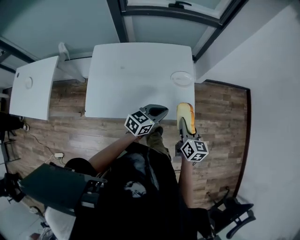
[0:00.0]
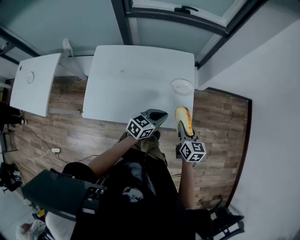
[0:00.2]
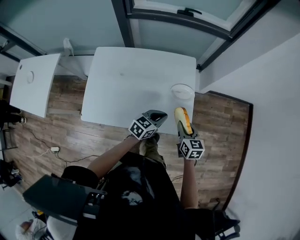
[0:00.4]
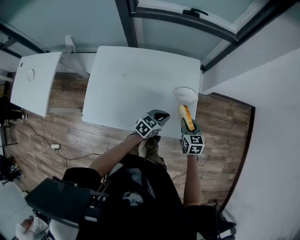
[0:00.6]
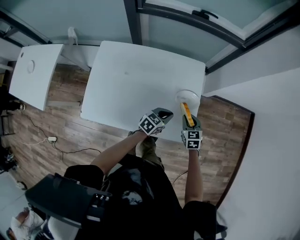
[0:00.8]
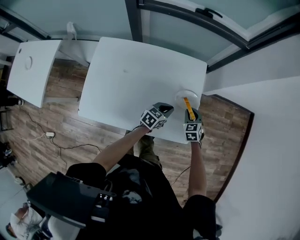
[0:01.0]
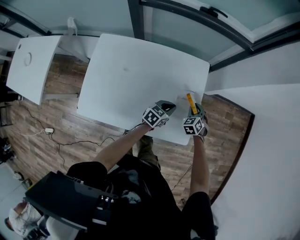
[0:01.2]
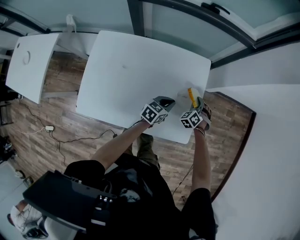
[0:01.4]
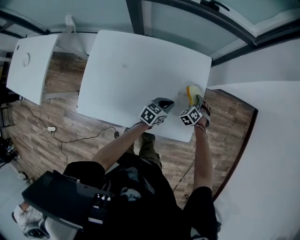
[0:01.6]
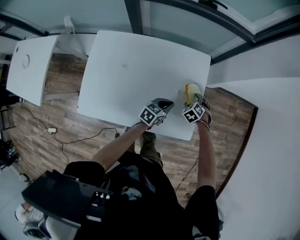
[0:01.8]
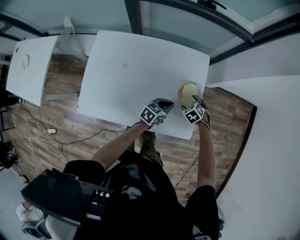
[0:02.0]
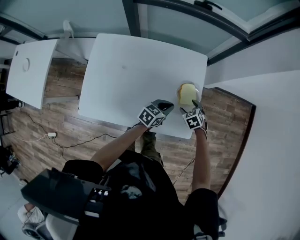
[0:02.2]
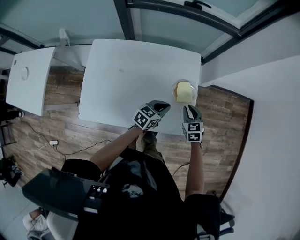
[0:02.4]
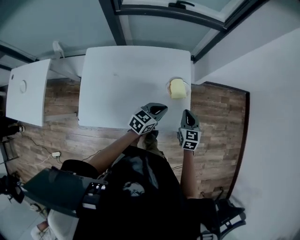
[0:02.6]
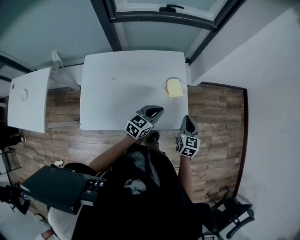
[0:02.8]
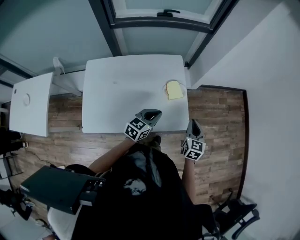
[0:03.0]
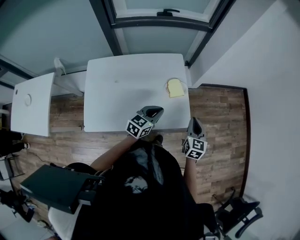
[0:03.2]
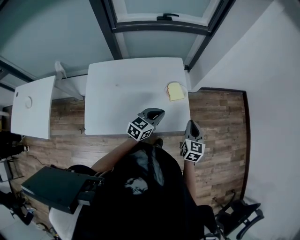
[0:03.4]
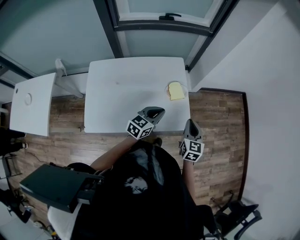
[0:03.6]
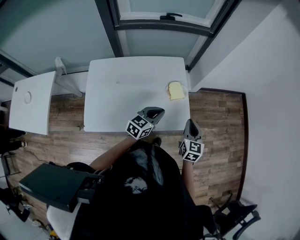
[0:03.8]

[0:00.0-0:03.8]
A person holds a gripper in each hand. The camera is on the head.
0:00.0 to 0:01.2: Both grippers move forward and downward, roughly 30 cm. The right gripper rotates around the line of its fingers by about 60 degrees, counterclockwise from behind.
0:01.2 to 0:02.6: The grippers both shift upward by roughly 10 cm. The right gripper twists some 40 degrees clockwise, seen from behind, and opens, then closes again.
0:02.6 to 0:03.8: Both grippers travel together backward and upward, about 10 cm.

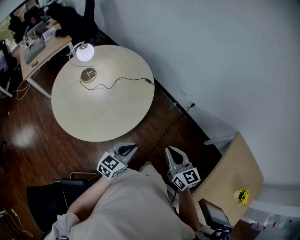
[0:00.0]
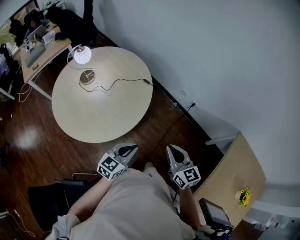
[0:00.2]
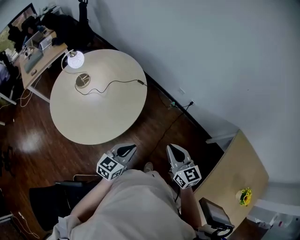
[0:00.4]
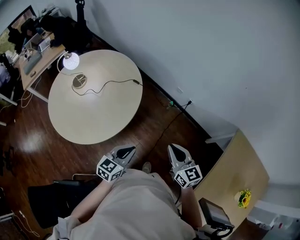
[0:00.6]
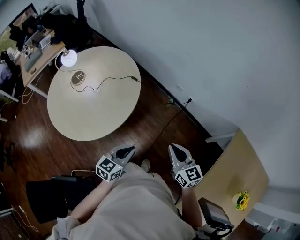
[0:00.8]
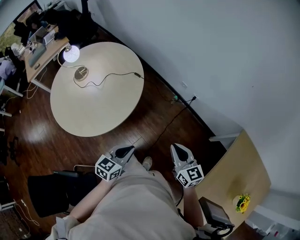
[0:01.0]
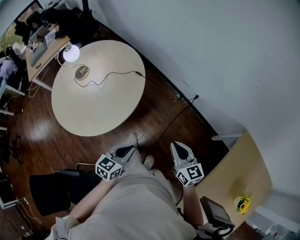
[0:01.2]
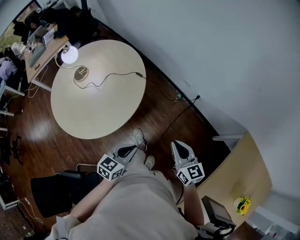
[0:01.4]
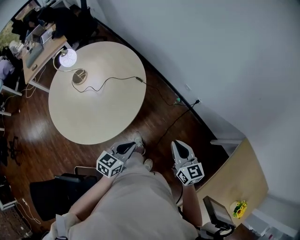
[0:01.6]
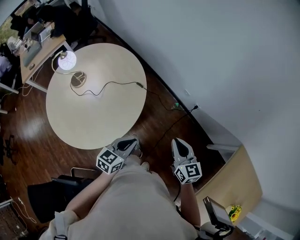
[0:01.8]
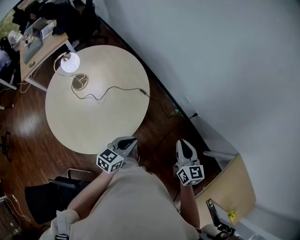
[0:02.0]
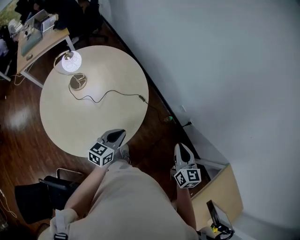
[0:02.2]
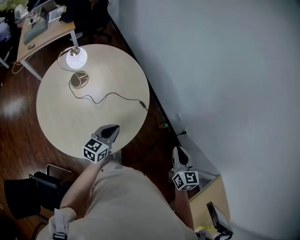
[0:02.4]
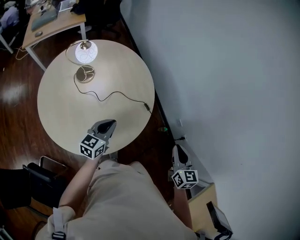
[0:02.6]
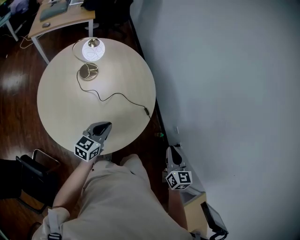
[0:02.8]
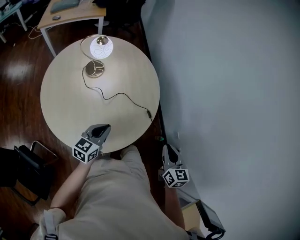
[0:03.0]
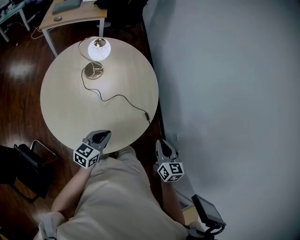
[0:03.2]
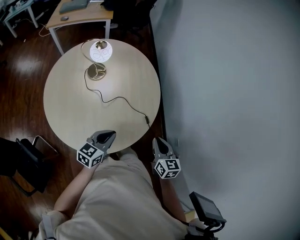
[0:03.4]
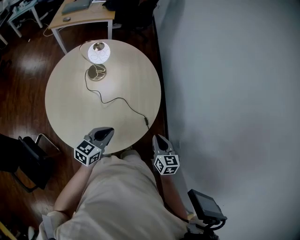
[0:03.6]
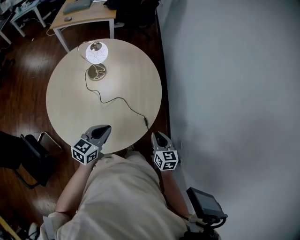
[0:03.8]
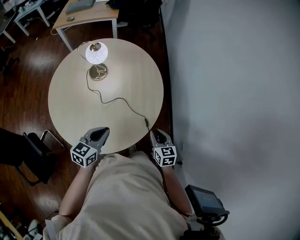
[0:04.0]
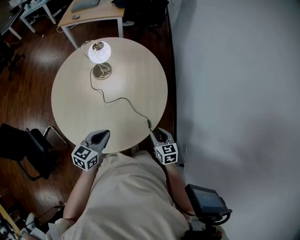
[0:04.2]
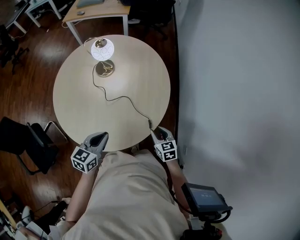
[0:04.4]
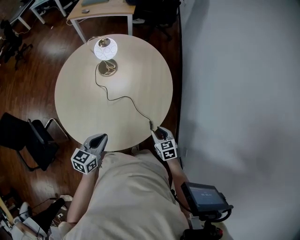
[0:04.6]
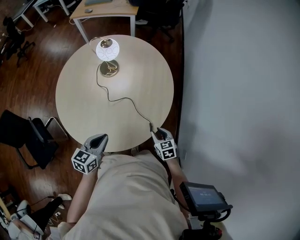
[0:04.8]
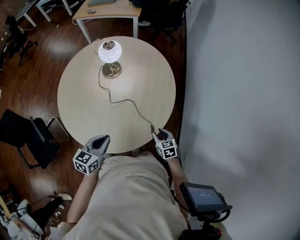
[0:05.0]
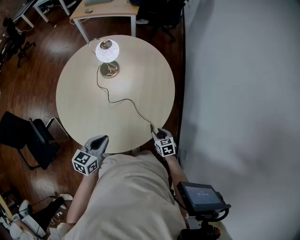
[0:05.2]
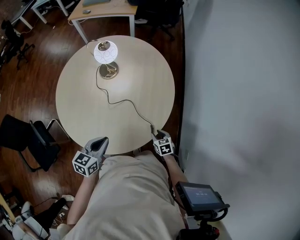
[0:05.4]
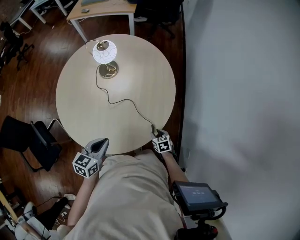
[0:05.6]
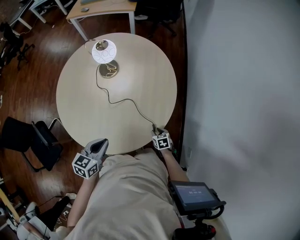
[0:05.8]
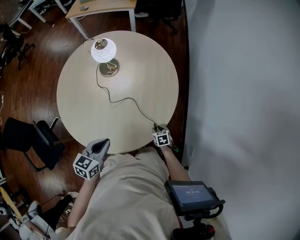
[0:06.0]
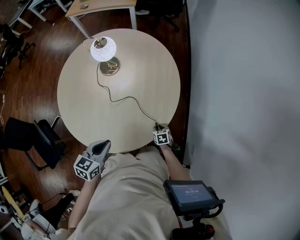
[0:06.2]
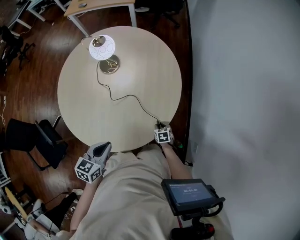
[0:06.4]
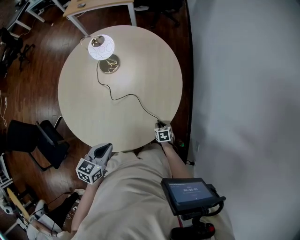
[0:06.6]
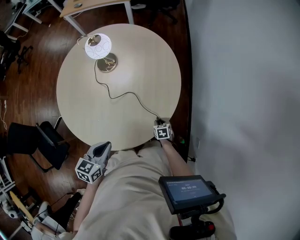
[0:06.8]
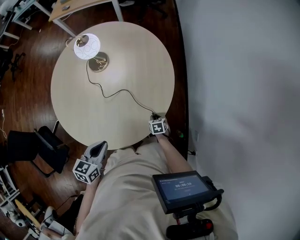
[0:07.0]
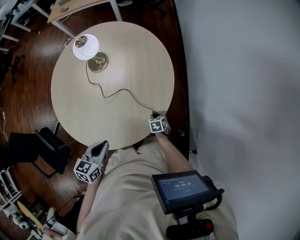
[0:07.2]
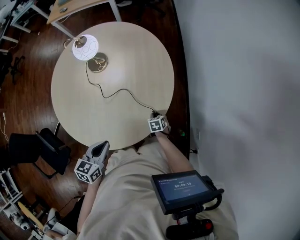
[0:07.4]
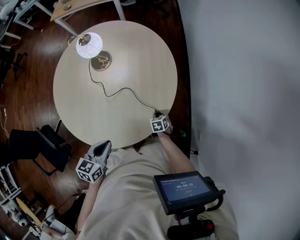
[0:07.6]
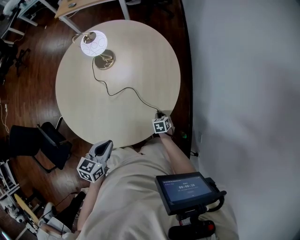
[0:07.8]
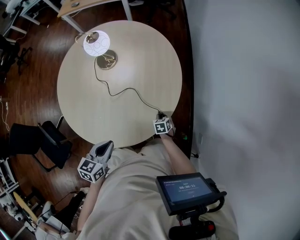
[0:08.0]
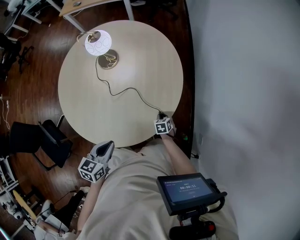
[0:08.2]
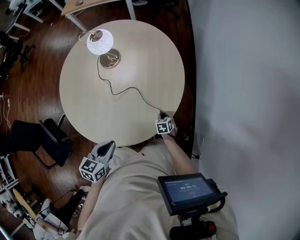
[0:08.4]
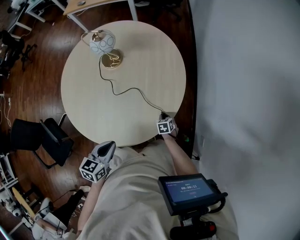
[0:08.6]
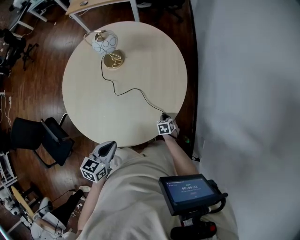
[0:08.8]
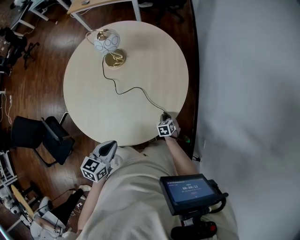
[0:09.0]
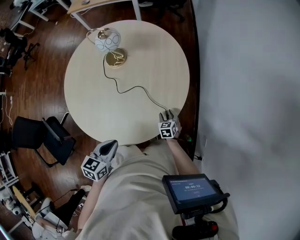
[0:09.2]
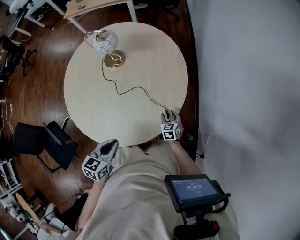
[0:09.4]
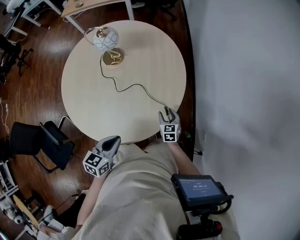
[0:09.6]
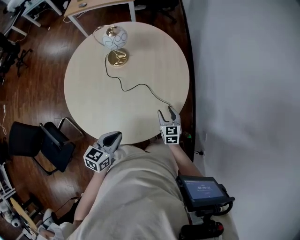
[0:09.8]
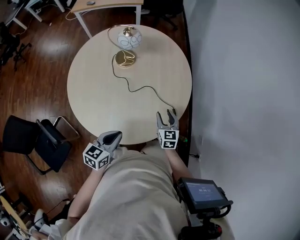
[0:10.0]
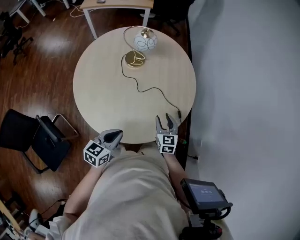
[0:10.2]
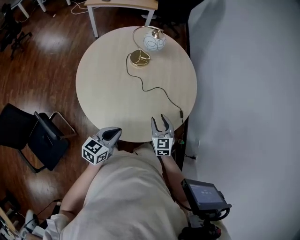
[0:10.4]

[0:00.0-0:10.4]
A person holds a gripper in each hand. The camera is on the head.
0:00.0 to 0:01.4: The right gripper is displaced to the right and forward by roughly 20 cm. Meanwhile the left gripper travels to the right by some 15 cm.
0:01.4 to 0:03.0: The left gripper shifts some 35 cm to the left and forward, and turns by roughly 30 degrees. The right gripper travels forward and to the left by about 35 cm.
0:03.0 to 0:04.4: The left gripper shifts by roughly 10 cm, and rotates roughly 20 degrees; the right gripper changes place by roughly 25 cm, swivels about 40 degrees, and opens up.
0:04.4 to 0:06.0: The right gripper travels downward by approximately 20 cm, and swivels approximately 20 degrees.
0:06.0 to 0:09.0: There are only small adjustments of the grippers.
0:09.0 to 0:10.4: The right gripper moves upward, to the left and backward, roughly 40 cm, points its fingers roughly 30 degrees further upward, and opens; the left gripper travels to the left by approximately 20 cm.

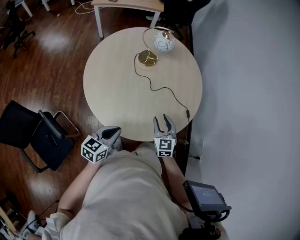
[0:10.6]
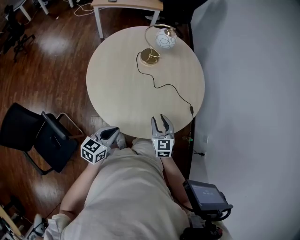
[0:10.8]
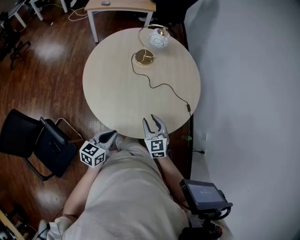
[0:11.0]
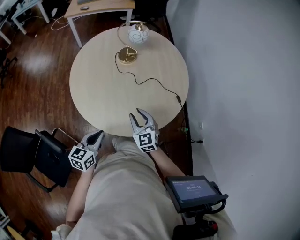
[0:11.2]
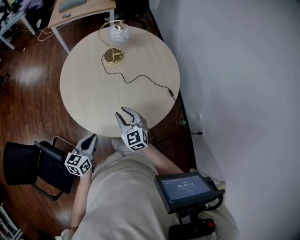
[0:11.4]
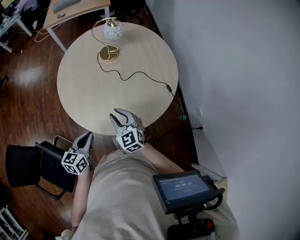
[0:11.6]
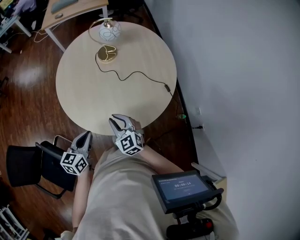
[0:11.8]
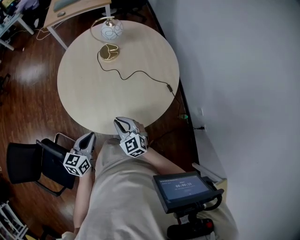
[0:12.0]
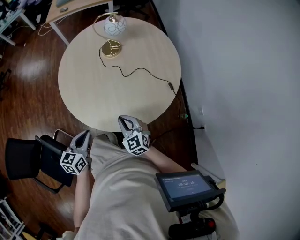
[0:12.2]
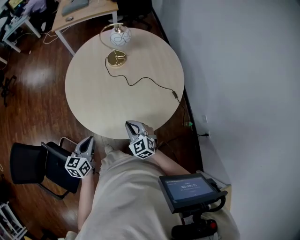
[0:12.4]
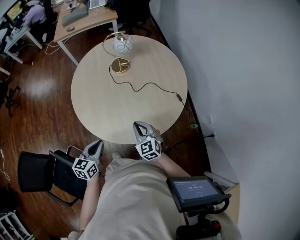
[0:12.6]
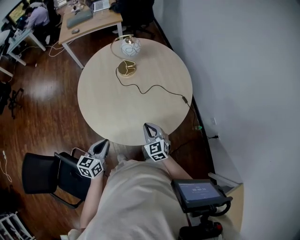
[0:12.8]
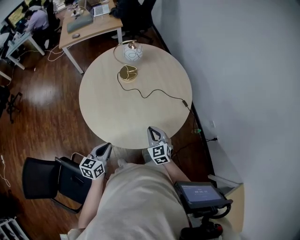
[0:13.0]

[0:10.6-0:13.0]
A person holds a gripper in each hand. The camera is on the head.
0:10.6 to 0:11.8: The right gripper moves to the left and backward, approximately 10 cm, and closes its fingers.
0:11.8 to 0:13.0: The right gripper rotates about 20 degrees. The left gripper shifts about 5 cm to the left.

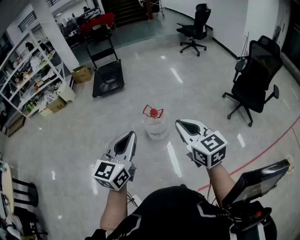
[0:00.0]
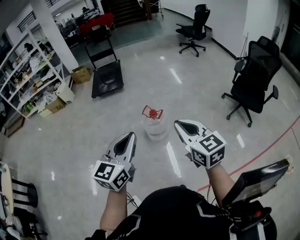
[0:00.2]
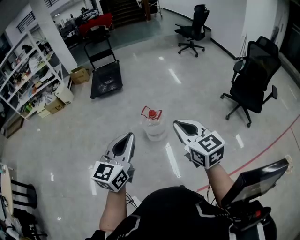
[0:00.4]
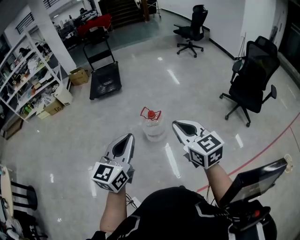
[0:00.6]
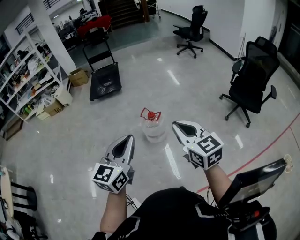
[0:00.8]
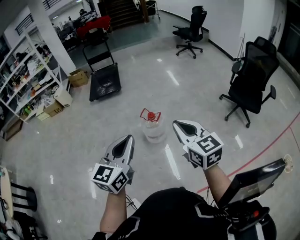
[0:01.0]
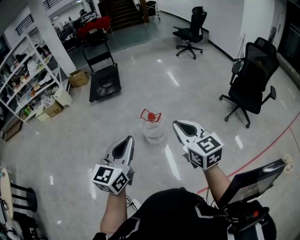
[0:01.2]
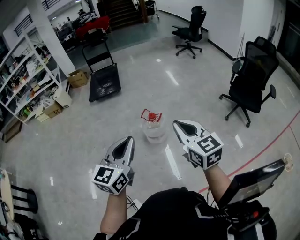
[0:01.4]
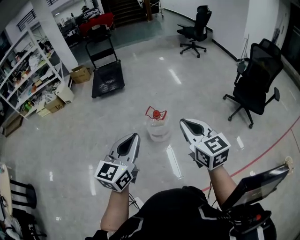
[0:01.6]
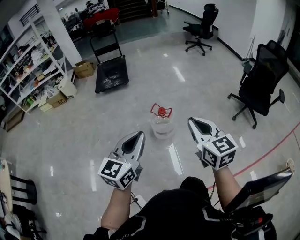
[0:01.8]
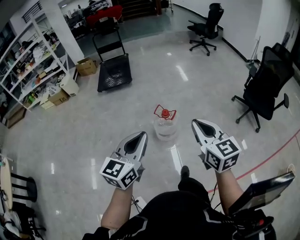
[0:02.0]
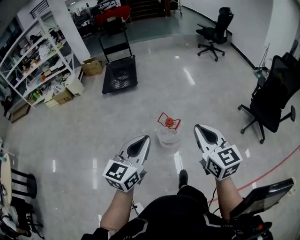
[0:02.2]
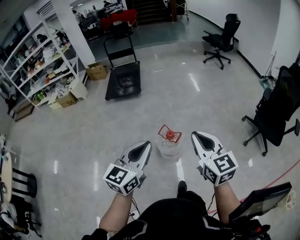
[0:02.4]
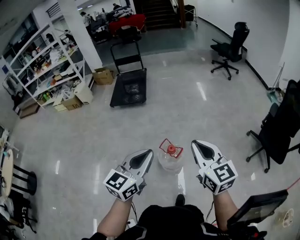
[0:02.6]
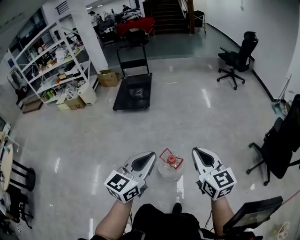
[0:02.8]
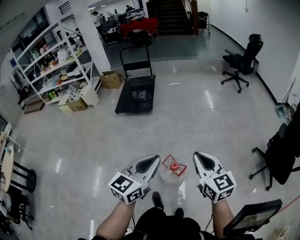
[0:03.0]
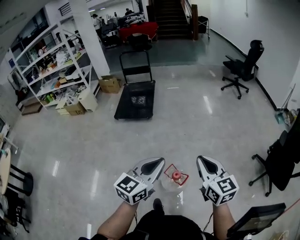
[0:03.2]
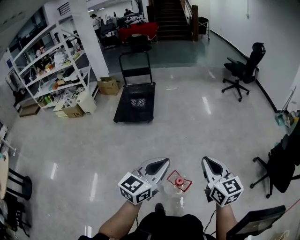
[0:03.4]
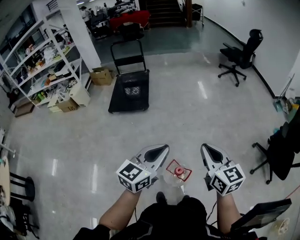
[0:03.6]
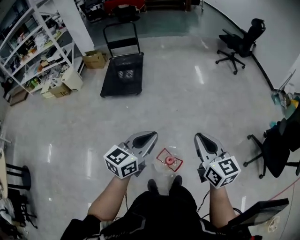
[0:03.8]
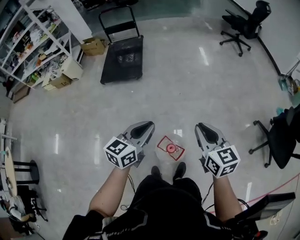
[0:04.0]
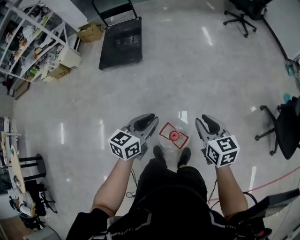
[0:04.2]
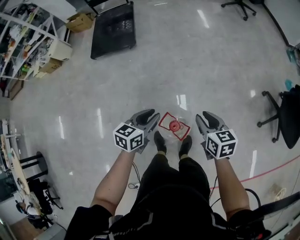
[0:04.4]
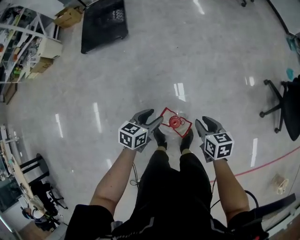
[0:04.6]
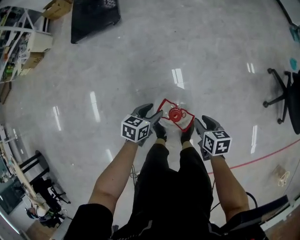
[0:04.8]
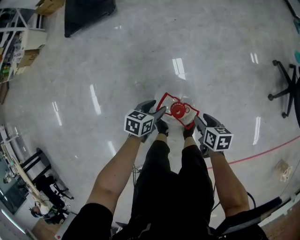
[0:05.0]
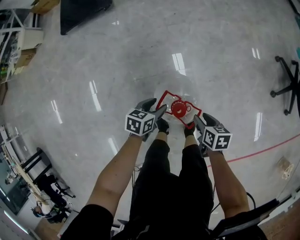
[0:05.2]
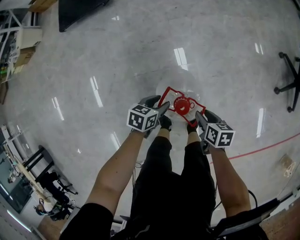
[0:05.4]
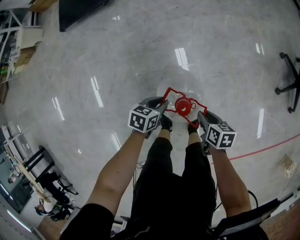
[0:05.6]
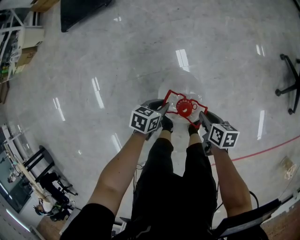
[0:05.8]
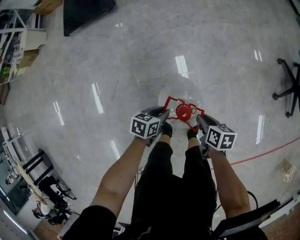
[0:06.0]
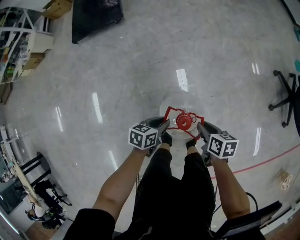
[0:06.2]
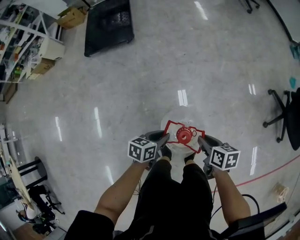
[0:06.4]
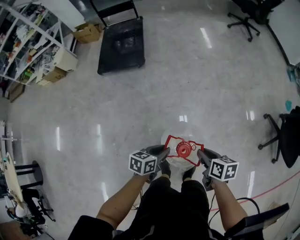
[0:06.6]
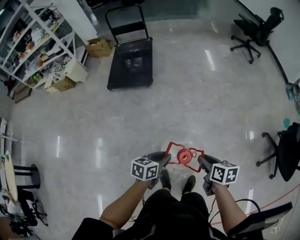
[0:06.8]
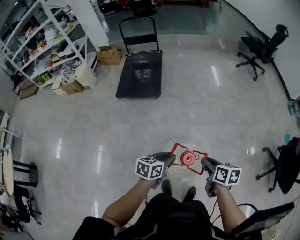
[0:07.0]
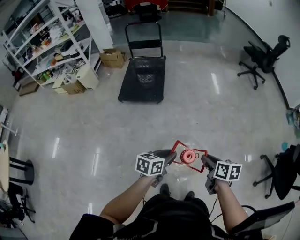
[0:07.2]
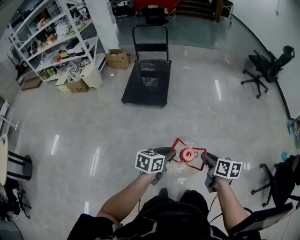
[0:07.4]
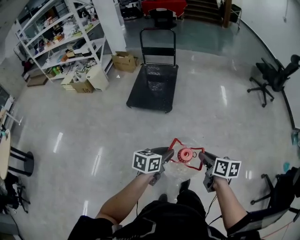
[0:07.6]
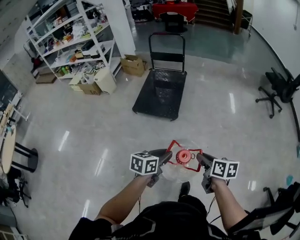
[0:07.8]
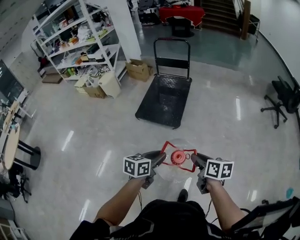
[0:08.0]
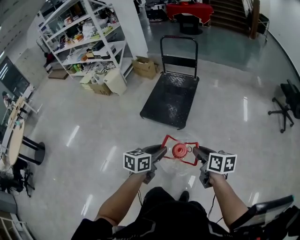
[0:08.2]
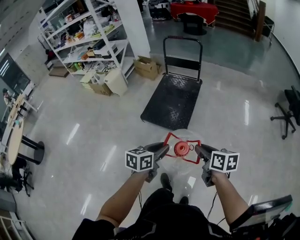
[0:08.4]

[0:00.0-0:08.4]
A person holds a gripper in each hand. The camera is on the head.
0:00.0 to 0:01.4: The grippers make only small movements.
0:01.4 to 0:02.8: Both grippers travel together forward, roughly 30 cm.
0:02.8 to 0:04.2: Both grippers move forward and downward, some 35 cm. The right gripper swivels approximately 20 degrees. Meanwhile the left gripper changes its angle by approximately 20 degrees.
0:04.2 to 0:05.6: Both grippers move downward, approximately 50 cm. The left gripper rotates roughly 40 degrees, and opens, then closes once more, while the right gripper swivels some 50 degrees.
0:05.6 to 0:07.0: Both grippers move upward, some 40 cm. The left gripper rotates roughly 30 degrees. The right gripper changes its angle by roughly 20 degrees.
0:07.0 to 0:08.4: The pair of grippers is taken approximately 40 cm. The right gripper rotates some 30 degrees, while the left gripper changes its angle by roughly 30 degrees.
